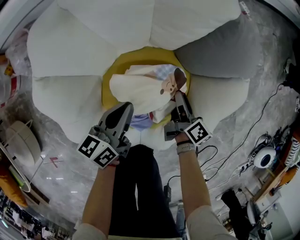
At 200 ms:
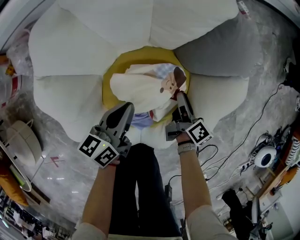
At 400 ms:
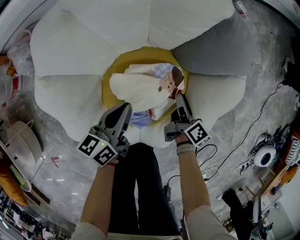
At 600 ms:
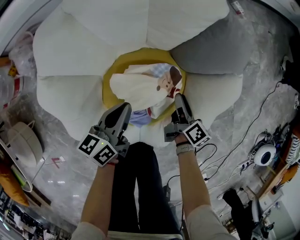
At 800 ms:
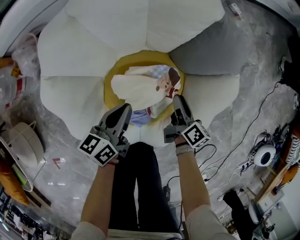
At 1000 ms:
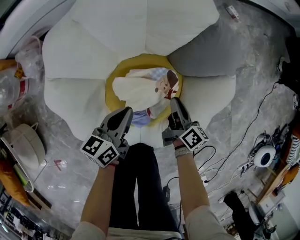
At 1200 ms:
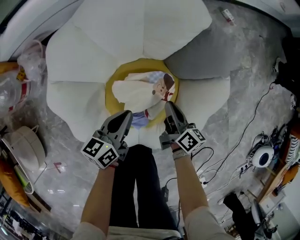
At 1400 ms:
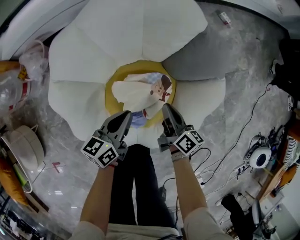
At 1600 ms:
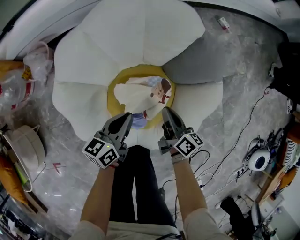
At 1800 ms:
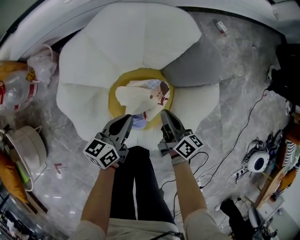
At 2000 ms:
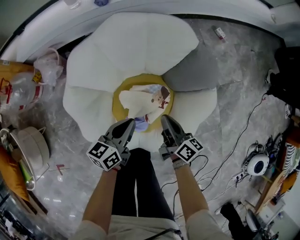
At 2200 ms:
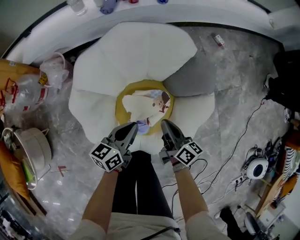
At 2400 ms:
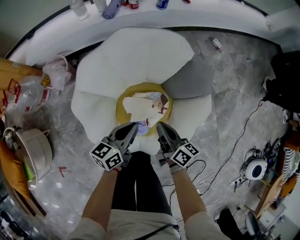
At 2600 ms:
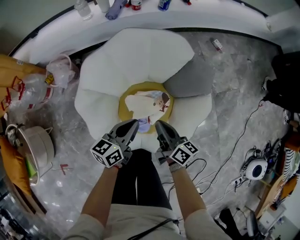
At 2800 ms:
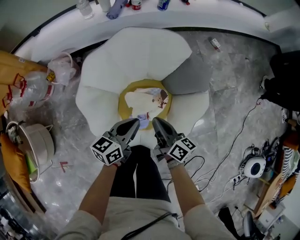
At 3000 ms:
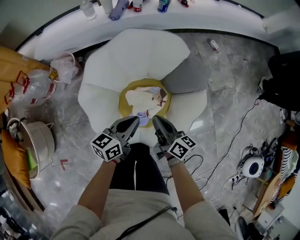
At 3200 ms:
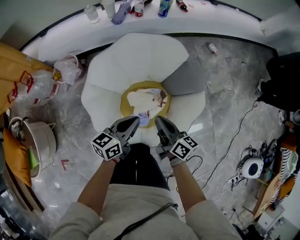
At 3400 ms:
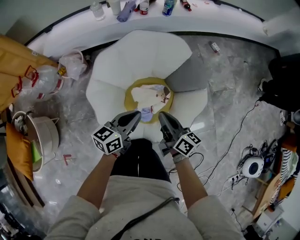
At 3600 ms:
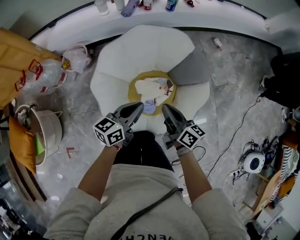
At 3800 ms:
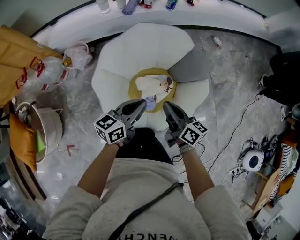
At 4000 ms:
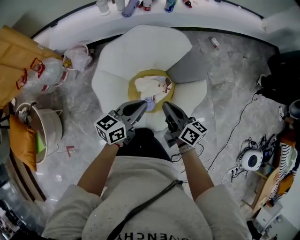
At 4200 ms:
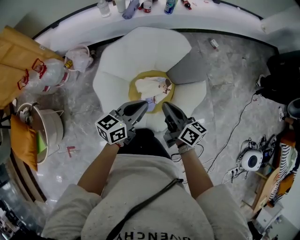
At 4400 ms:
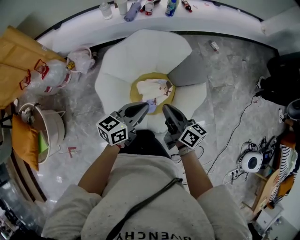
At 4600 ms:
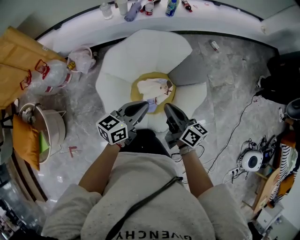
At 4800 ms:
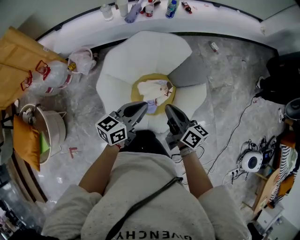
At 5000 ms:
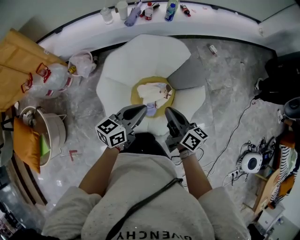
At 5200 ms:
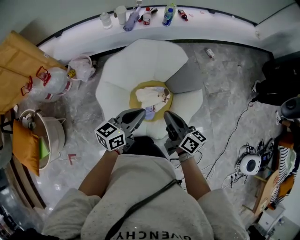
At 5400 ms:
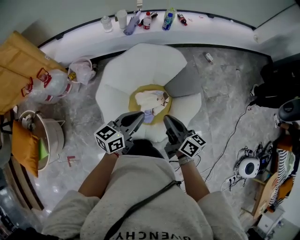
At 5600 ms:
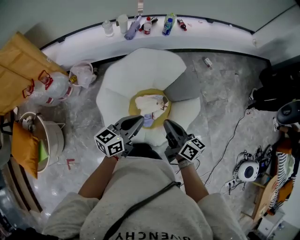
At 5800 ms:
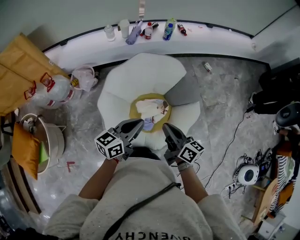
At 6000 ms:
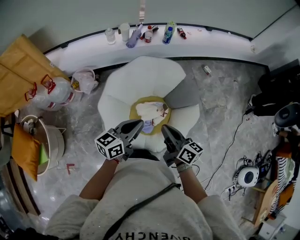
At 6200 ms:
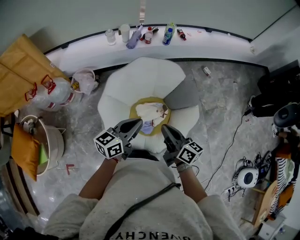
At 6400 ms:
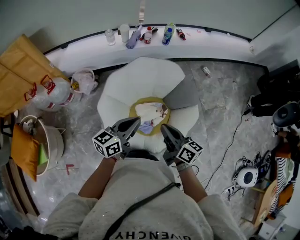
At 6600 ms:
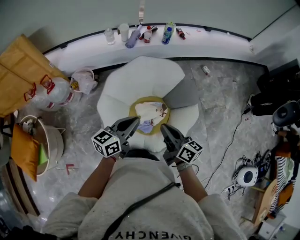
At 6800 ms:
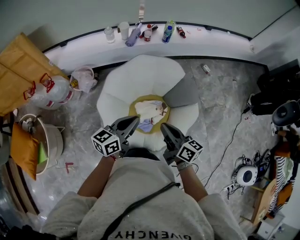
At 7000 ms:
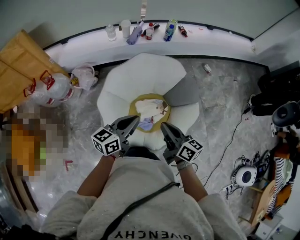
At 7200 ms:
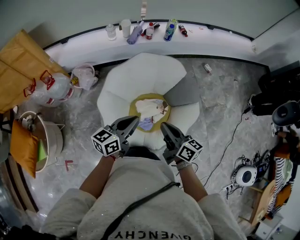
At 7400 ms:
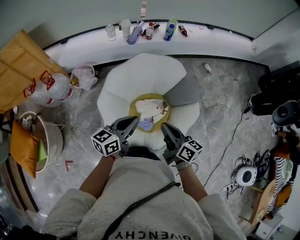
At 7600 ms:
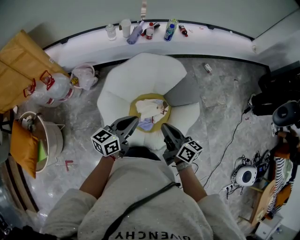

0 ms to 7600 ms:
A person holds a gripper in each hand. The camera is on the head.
0 ms to 1600 ms: The grippers both shift upward by roughly 15 cm. The right gripper closes up.
1600 ms to 3000 ms: Both grippers move upward, approximately 20 cm.
3000 ms to 4600 ms: Both grippers travel together upward, approximately 15 cm.
4600 ms to 6000 ms: The two grippers go approximately 5 cm upward.
6000 ms to 7600 ms: The grippers move only a little.

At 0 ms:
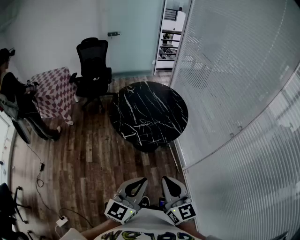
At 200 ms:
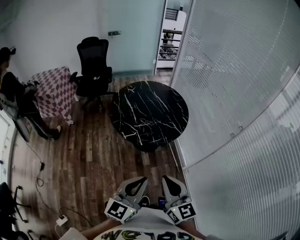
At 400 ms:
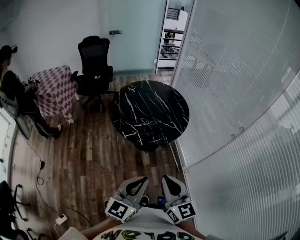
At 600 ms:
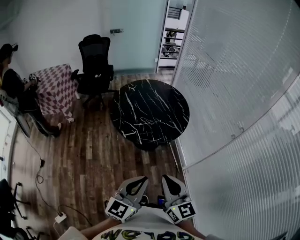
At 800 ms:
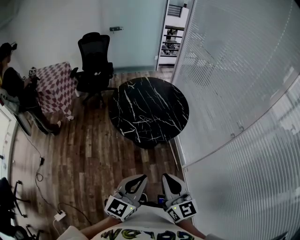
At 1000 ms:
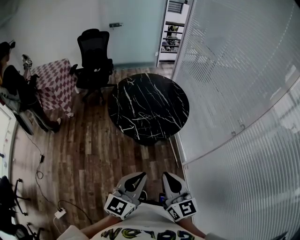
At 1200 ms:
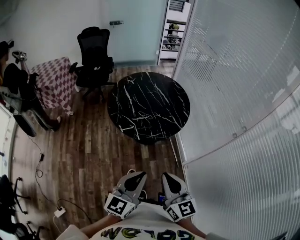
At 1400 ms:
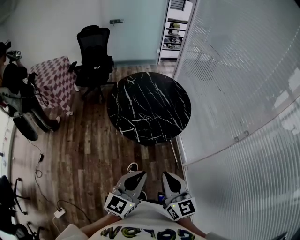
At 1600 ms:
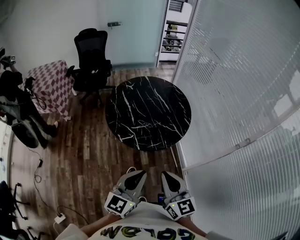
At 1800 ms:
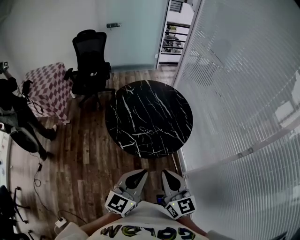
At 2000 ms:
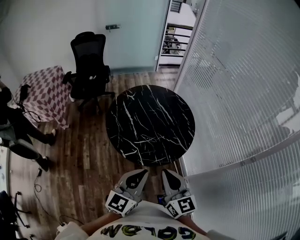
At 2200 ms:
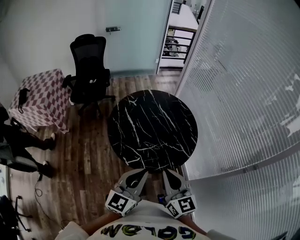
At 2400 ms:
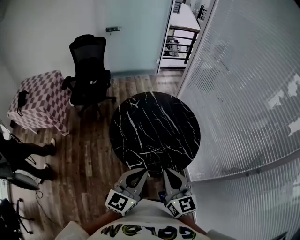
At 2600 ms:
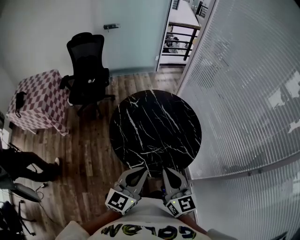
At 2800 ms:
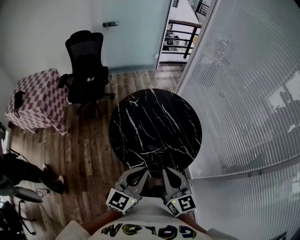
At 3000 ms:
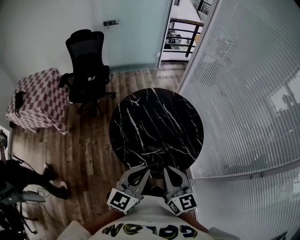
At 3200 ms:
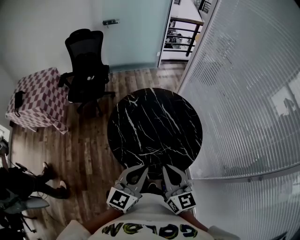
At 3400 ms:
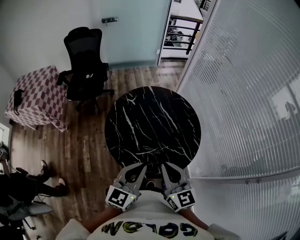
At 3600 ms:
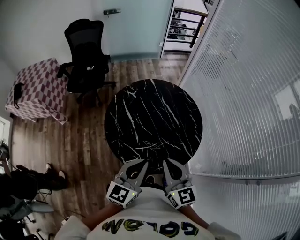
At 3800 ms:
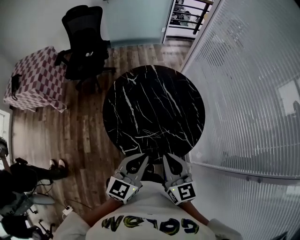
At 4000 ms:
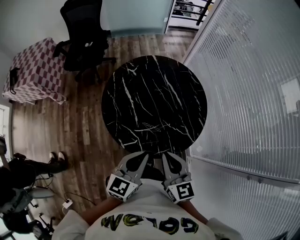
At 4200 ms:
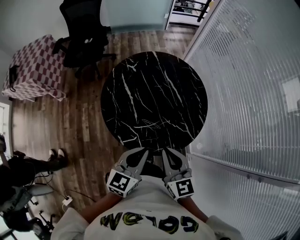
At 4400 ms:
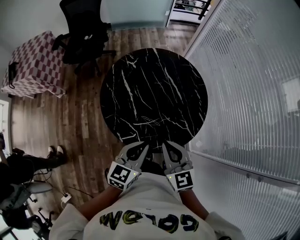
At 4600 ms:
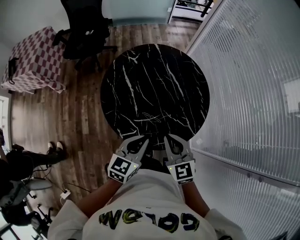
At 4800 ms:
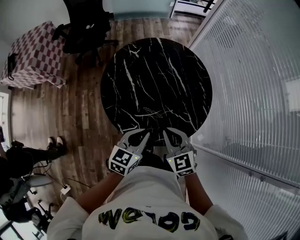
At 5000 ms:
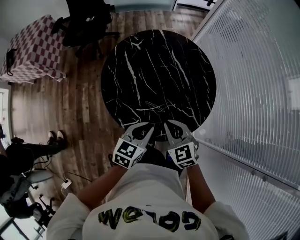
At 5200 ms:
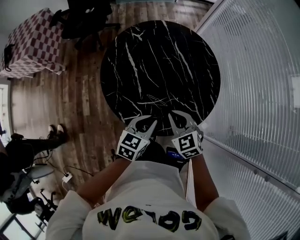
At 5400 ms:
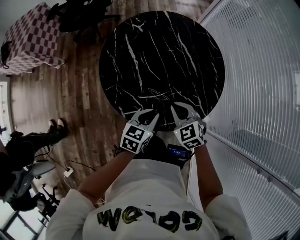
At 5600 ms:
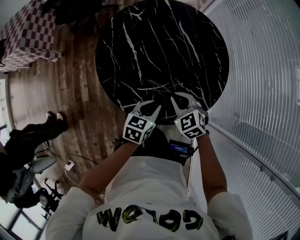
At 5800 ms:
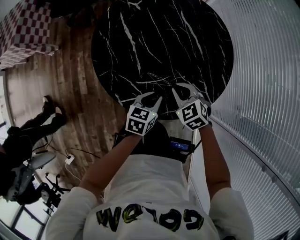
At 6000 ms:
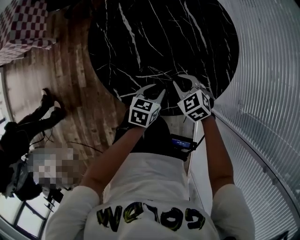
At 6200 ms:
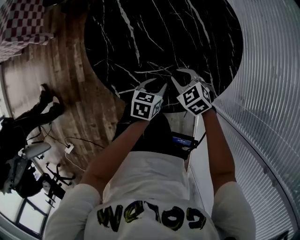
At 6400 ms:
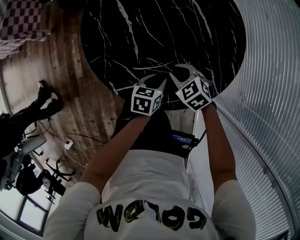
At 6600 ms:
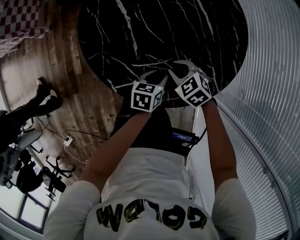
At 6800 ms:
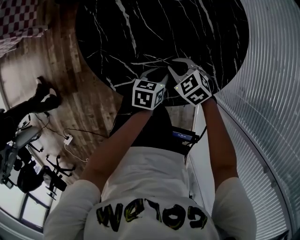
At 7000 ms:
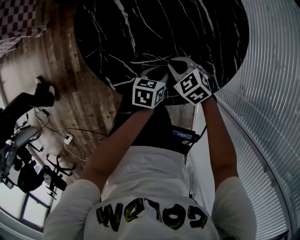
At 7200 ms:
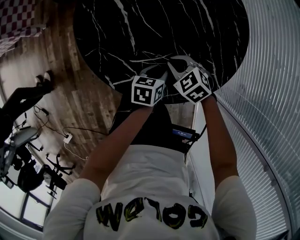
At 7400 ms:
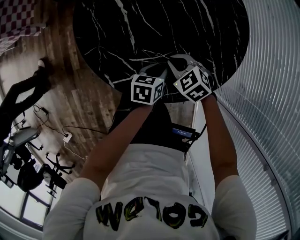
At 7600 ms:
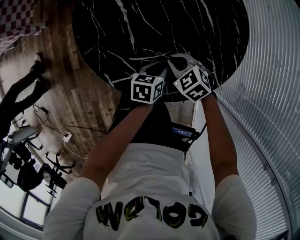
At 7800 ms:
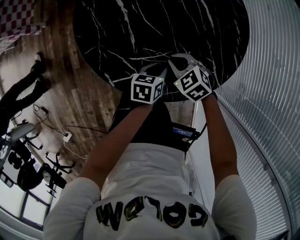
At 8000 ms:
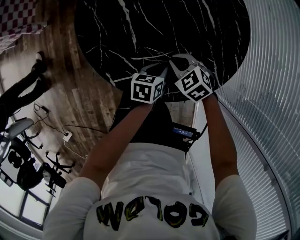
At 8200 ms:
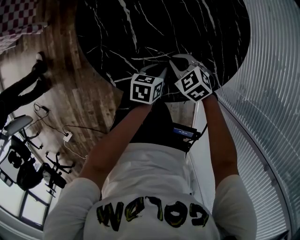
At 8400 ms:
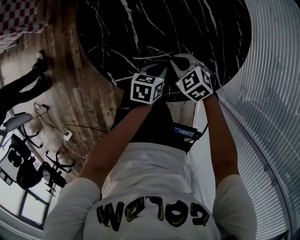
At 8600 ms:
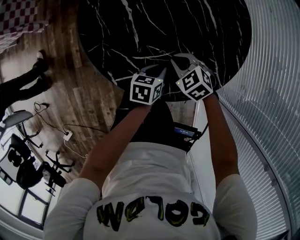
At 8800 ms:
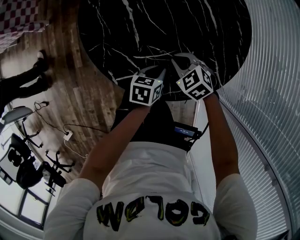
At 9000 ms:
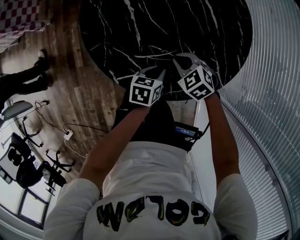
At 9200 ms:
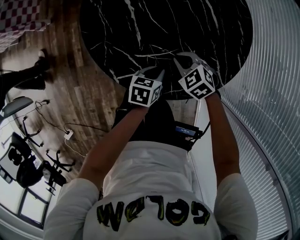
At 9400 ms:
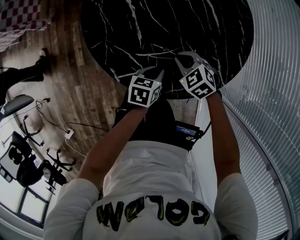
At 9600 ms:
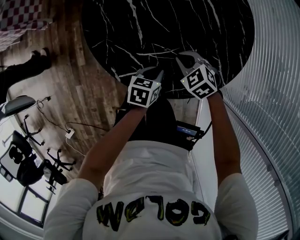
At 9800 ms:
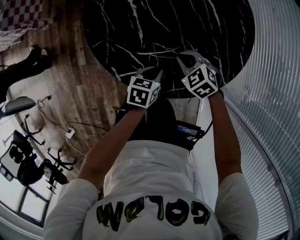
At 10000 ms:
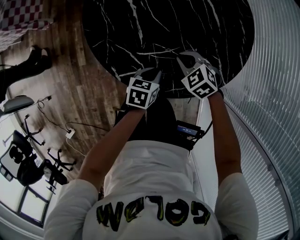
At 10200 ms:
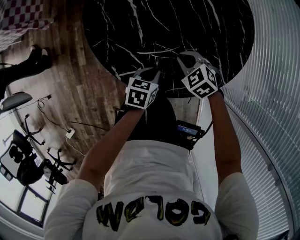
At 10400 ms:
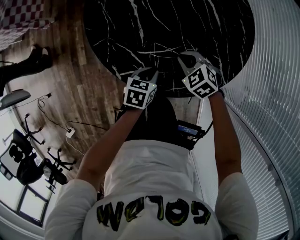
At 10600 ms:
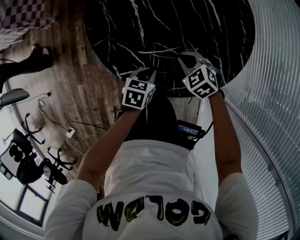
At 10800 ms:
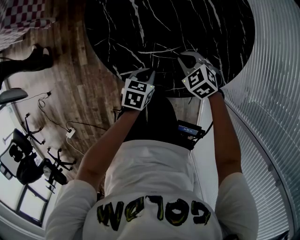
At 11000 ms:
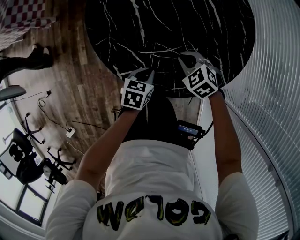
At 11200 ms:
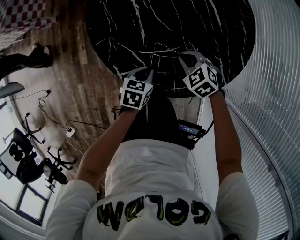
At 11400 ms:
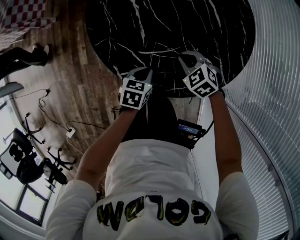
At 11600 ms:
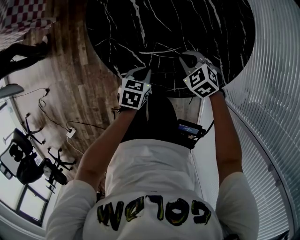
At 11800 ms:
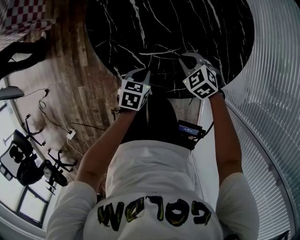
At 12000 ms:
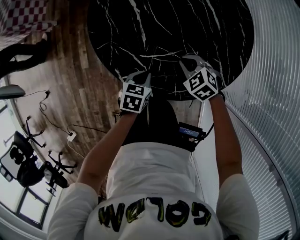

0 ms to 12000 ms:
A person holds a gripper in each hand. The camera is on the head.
0 ms to 1600 ms: Both grippers move forward, some 10 cm.
1600 ms to 3000 ms: The grippers both shift forward and to the left by some 30 cm.
3000 ms to 4400 ms: The right gripper travels downward, forward and to the right by roughly 10 cm, while the left gripper is displaced downward and to the right by approximately 10 cm.
4400 ms to 6000 ms: The two grippers go roughly 30 cm downward. The left gripper changes its angle by some 30 degrees, and opens its fingers. The right gripper tilts its fingers about 40 degrees downward.
6000 ms to 7600 ms: Both grippers travel together downward, about 5 cm.
7600 ms to 9000 ms: The grippers move only a little.
9000 ms to 10400 ms: The grippers move only a little.
10400 ms to 12000 ms: The grippers move only a little.

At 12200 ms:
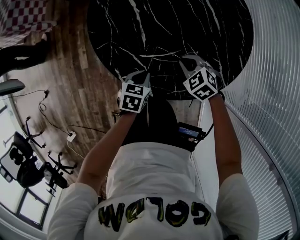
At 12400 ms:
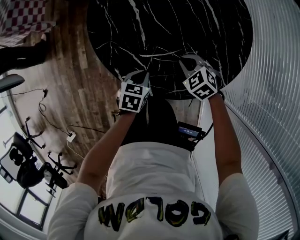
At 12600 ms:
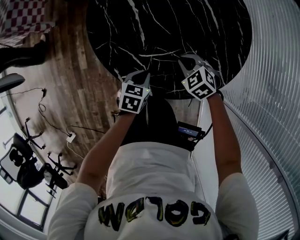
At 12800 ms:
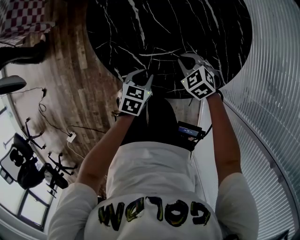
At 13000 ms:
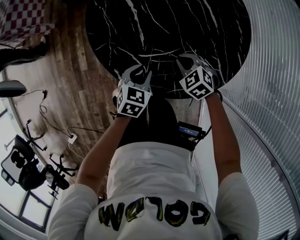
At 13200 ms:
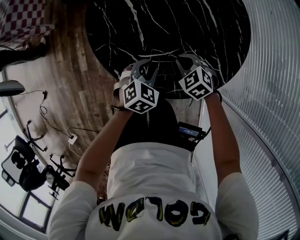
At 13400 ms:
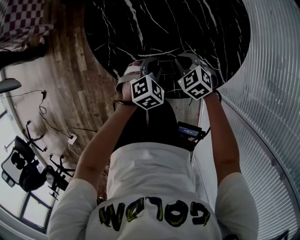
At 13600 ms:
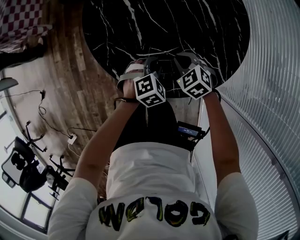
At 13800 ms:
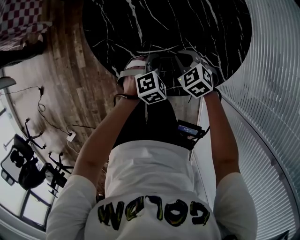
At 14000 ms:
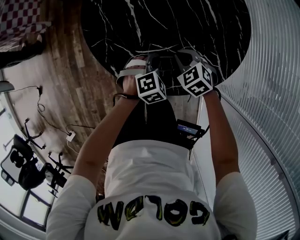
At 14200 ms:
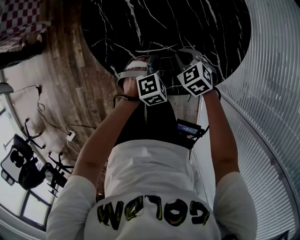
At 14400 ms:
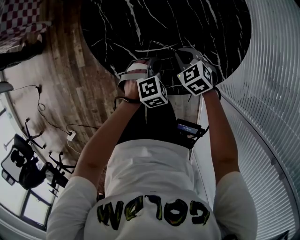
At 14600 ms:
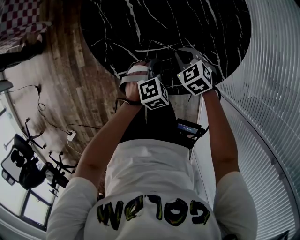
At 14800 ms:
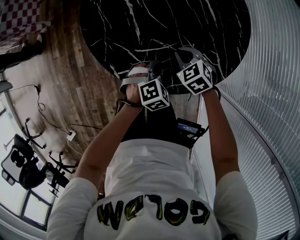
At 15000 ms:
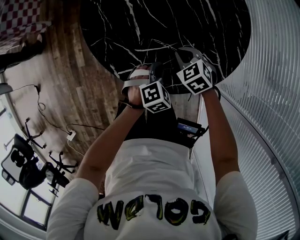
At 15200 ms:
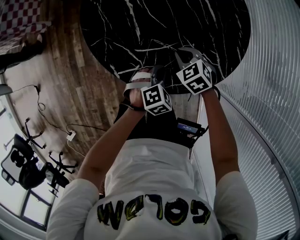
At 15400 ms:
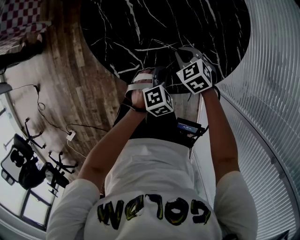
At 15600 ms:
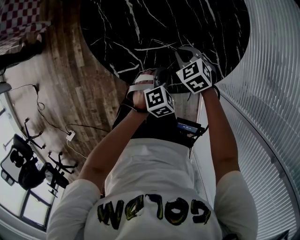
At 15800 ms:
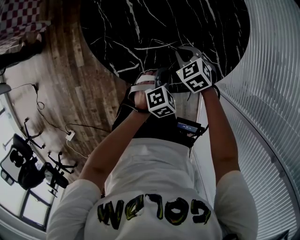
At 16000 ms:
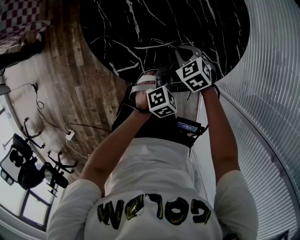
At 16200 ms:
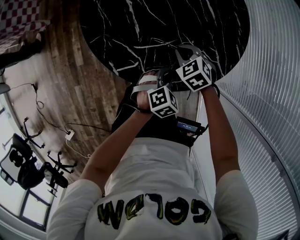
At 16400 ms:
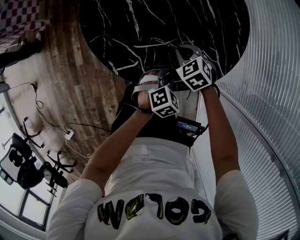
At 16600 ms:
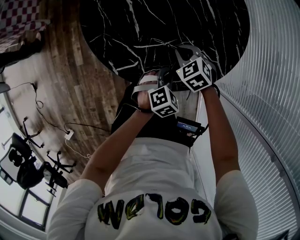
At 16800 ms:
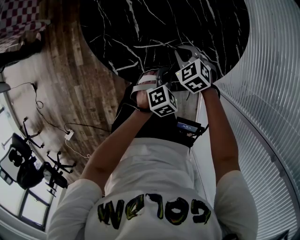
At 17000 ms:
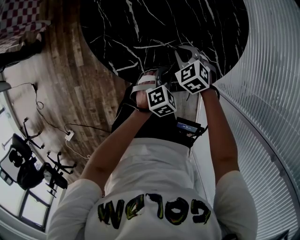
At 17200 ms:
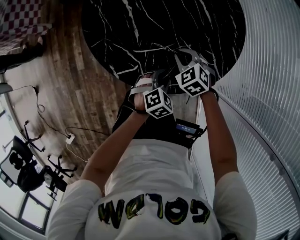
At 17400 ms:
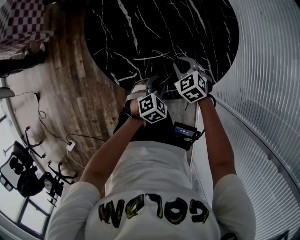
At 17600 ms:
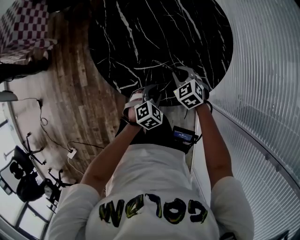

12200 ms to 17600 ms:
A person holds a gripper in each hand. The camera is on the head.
12200 ms to 13600 ms: The left gripper is displaced to the right by some 5 cm, and twists roughly 50 degrees clockwise, seen from behind.
13600 ms to 15000 ms: The grippers stay close to where they were, moving slightly.
15000 ms to 16200 ms: The left gripper changes place by roughly 5 cm.
16200 ms to 17600 ms: The grippers move only a little.
